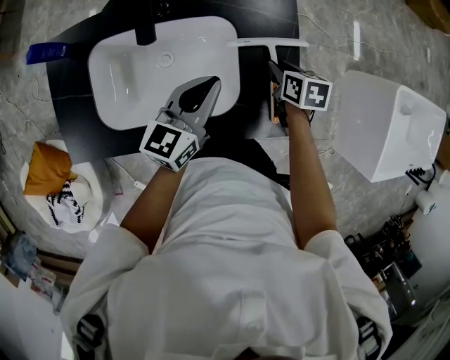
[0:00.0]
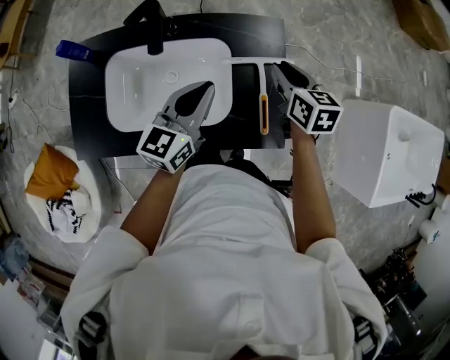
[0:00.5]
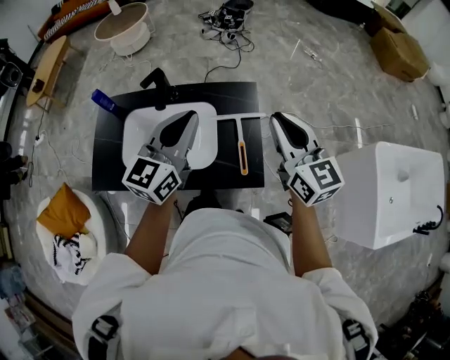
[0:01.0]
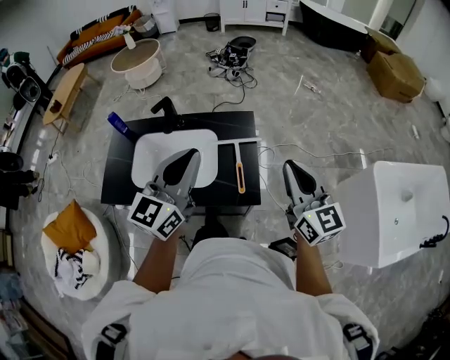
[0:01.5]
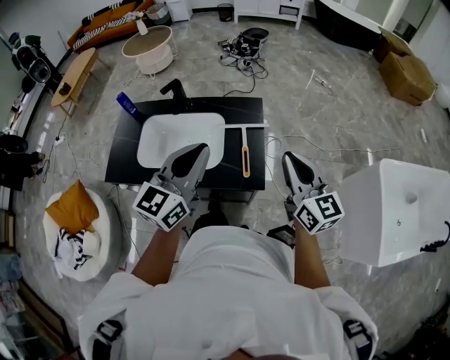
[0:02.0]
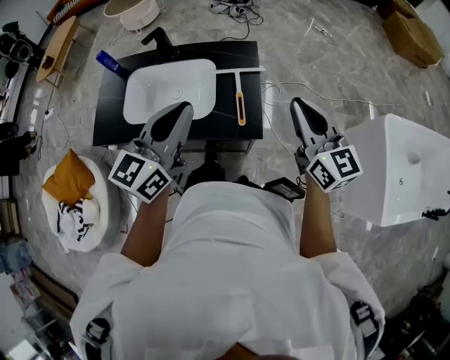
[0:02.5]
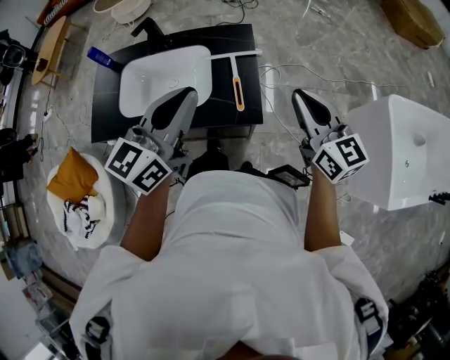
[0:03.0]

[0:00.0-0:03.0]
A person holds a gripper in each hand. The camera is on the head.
0:00.0 to 0:01.5: Both grippers travel together upward and backward, about 40 cm. The right gripper angles its fingers upward, by roughly 60 degrees; the left gripper rotates approximately 30 degrees.
0:01.5 to 0:03.0: The right gripper is displaced downward by about 5 cm. The left gripper moves approximately 5 cm.

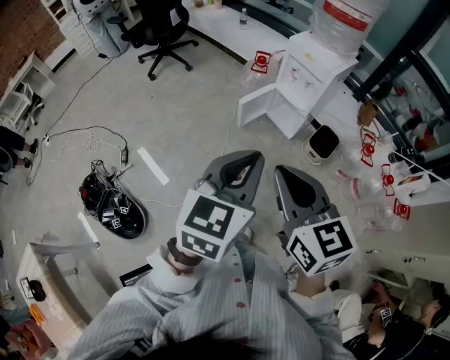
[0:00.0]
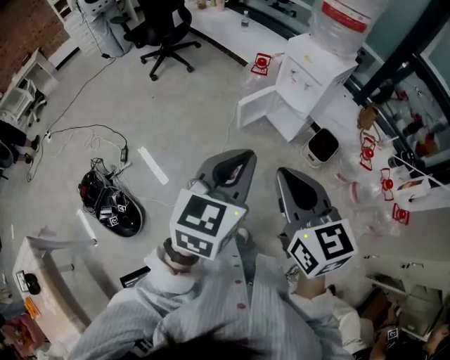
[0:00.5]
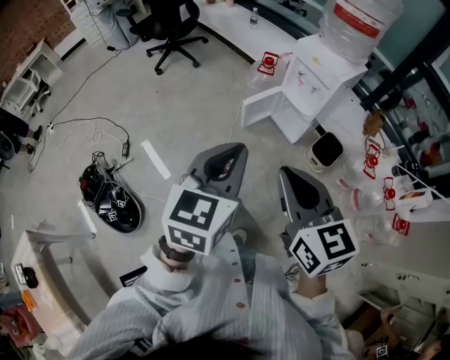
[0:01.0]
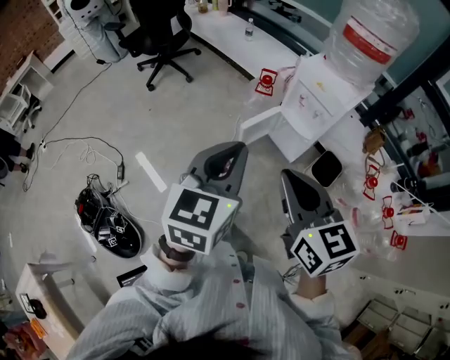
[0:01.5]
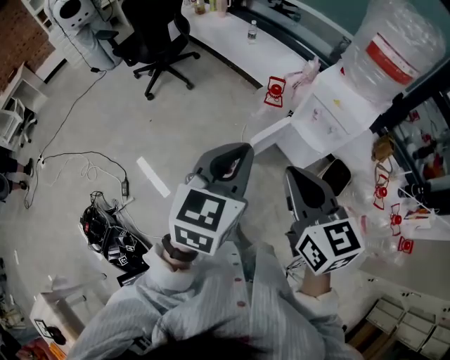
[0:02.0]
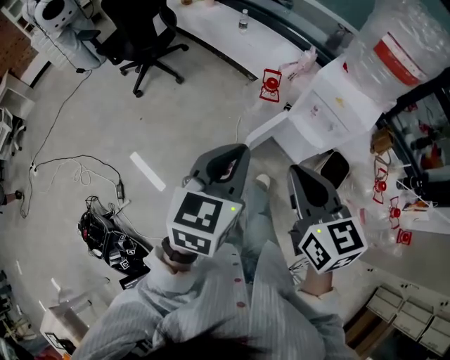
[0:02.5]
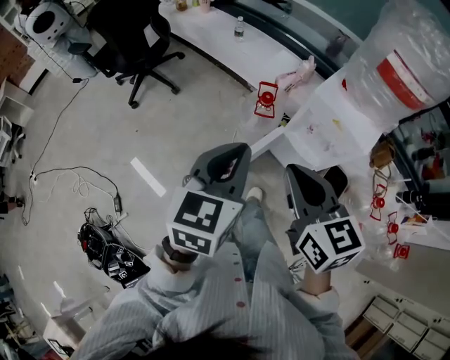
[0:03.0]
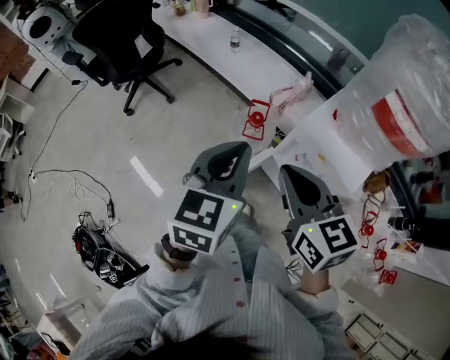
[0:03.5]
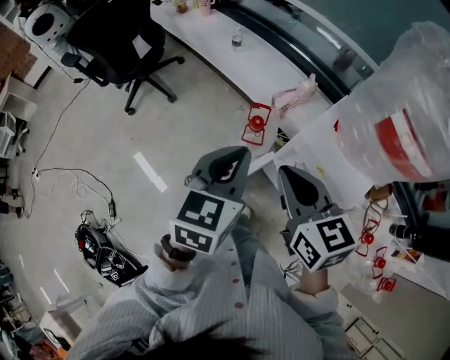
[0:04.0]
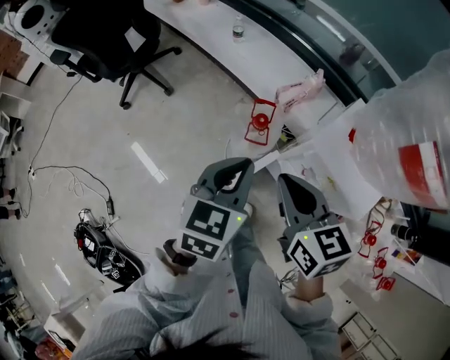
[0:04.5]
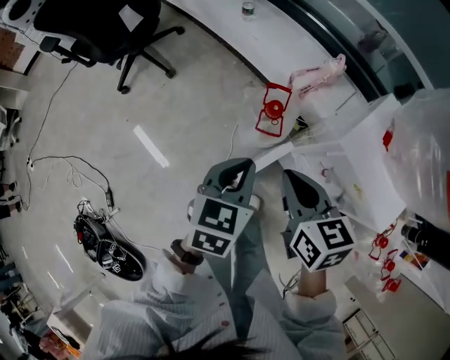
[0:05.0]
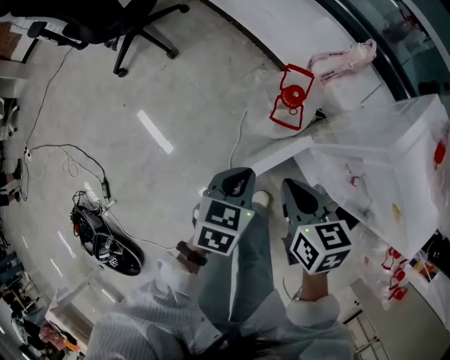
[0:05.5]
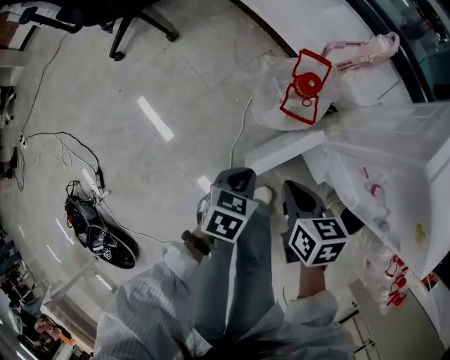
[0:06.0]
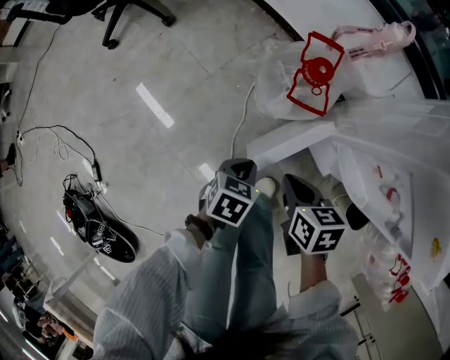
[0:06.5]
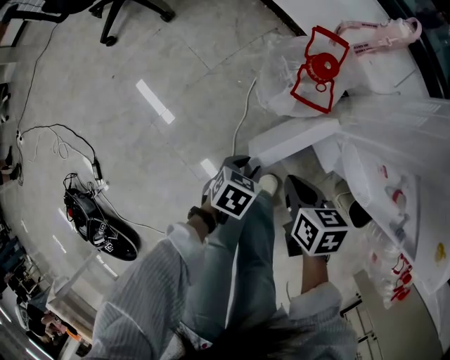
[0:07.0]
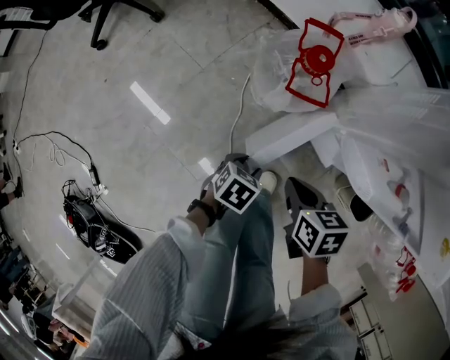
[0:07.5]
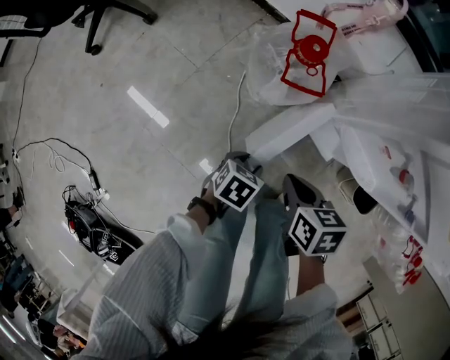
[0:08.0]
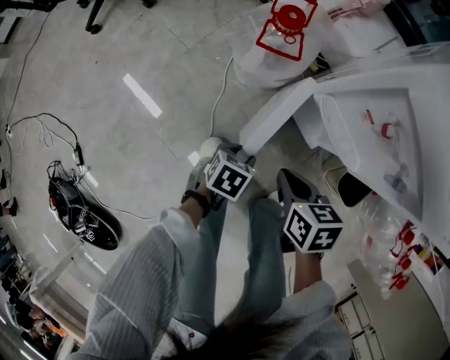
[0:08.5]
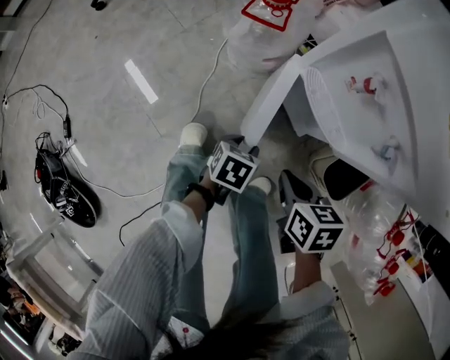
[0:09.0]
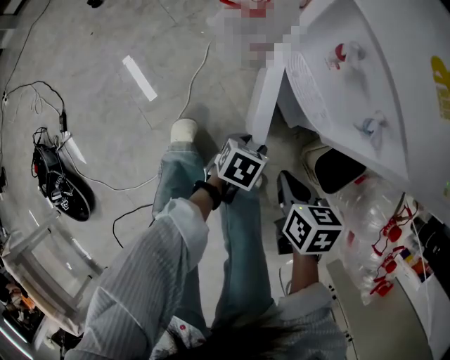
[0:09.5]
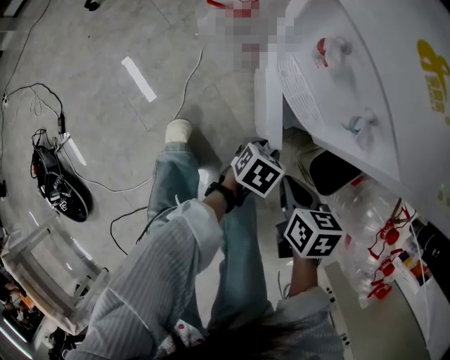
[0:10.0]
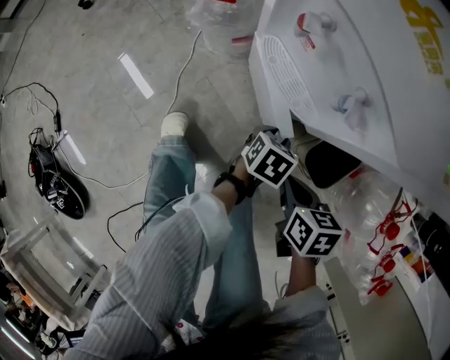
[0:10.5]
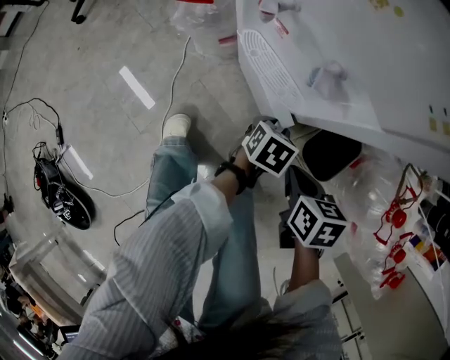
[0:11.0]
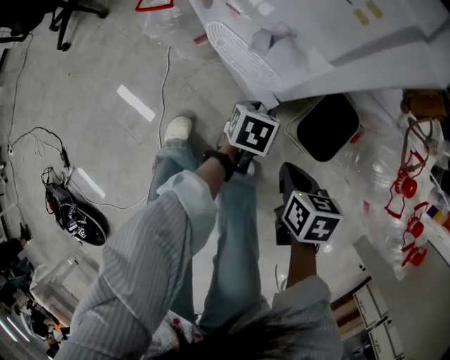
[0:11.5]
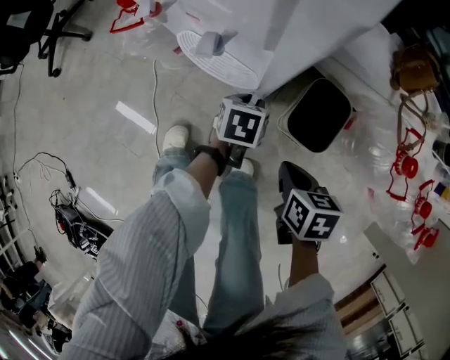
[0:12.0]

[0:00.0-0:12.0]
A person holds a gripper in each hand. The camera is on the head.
0:00.0 to 0:02.0: The two grippers go about 30 cm forward.
0:02.0 to 0:04.0: Both grippers travel together forward, approximately 30 cm.
0:04.0 to 0:06.0: Both grippers travel together downward, some 40 cm. The right gripper swivels approximately 30 degrees. Meanwhile the left gripper swivels approximately 30 degrees.
0:06.0 to 0:08.0: The right gripper shifts approximately 10 cm downward, while the left gripper is displaced downward by some 15 cm, rotates approximately 20 degrees, and opens up.
0:08.0 to 0:10.0: The right gripper is displaced to the right and backward by some 30 cm. The left gripper shifts roughly 30 cm to the right.
0:10.0 to 0:12.0: The right gripper travels to the right by approximately 10 cm, and changes its angle by roughly 20 degrees, while the left gripper heads to the right and forward, covering about 10 cm.

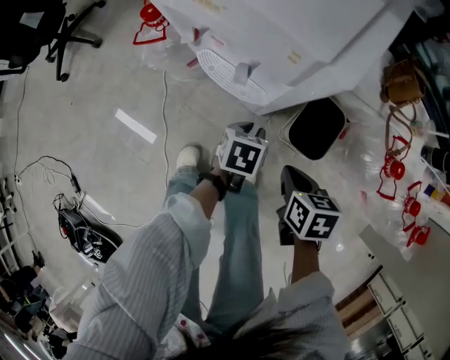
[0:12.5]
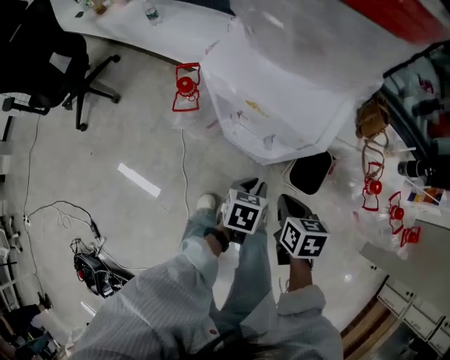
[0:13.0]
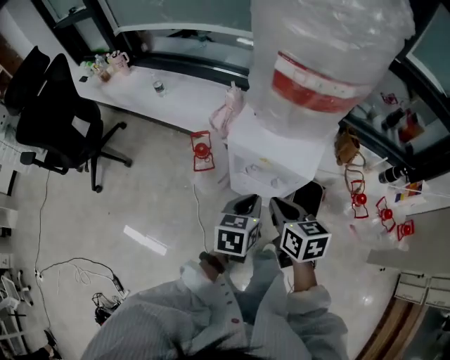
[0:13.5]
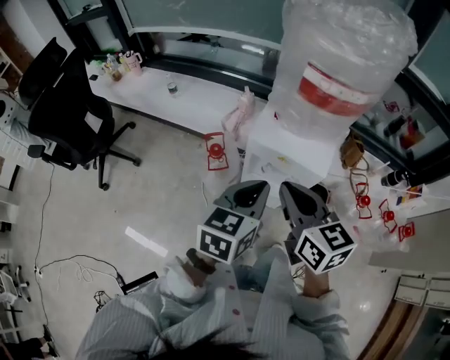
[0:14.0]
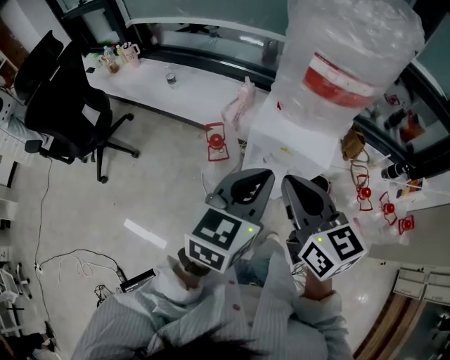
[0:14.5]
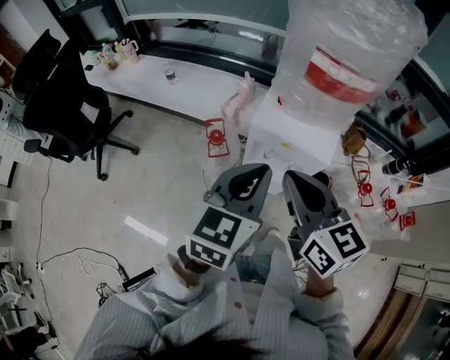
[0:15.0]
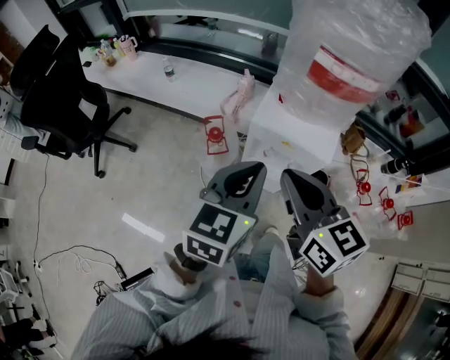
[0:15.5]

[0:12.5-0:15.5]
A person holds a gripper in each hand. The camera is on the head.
0:12.5 to 0:14.0: The left gripper is displaced upward by approximately 50 cm, tilts its fingers approximately 40 degrees upward, and closes up; the right gripper heads upward and to the left, covering approximately 60 cm, and tilts its fingers approximately 40 degrees upward.
0:14.0 to 0:15.5: The left gripper changes place by about 5 cm.

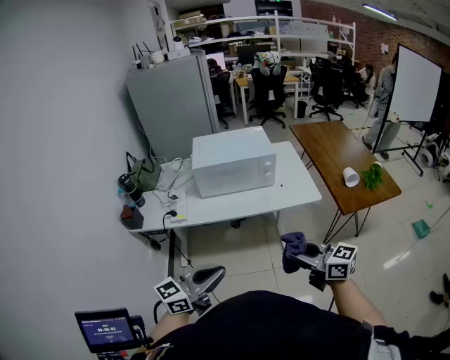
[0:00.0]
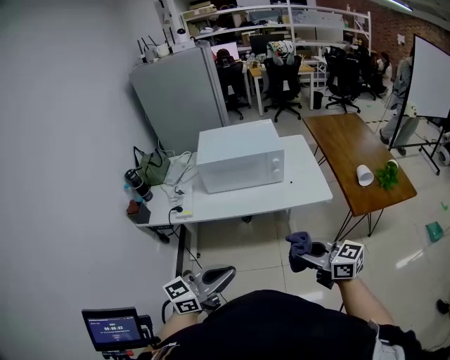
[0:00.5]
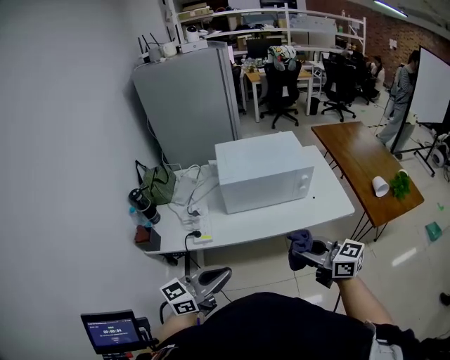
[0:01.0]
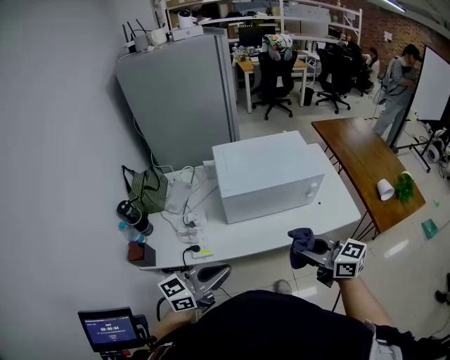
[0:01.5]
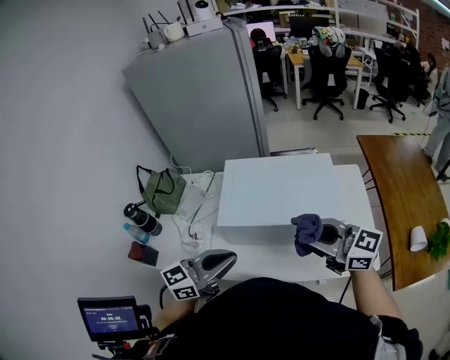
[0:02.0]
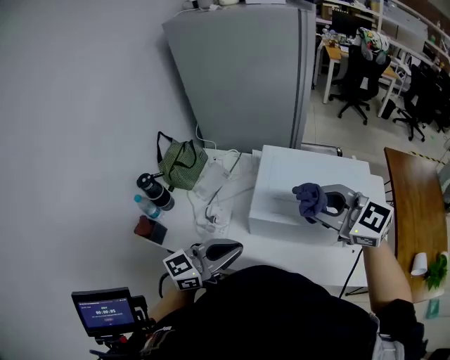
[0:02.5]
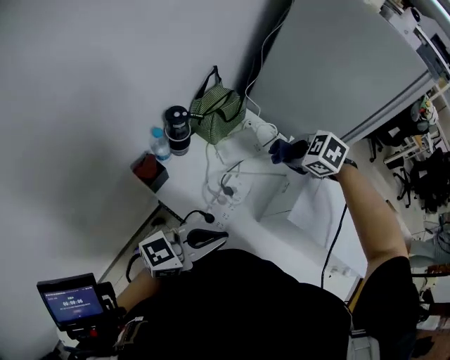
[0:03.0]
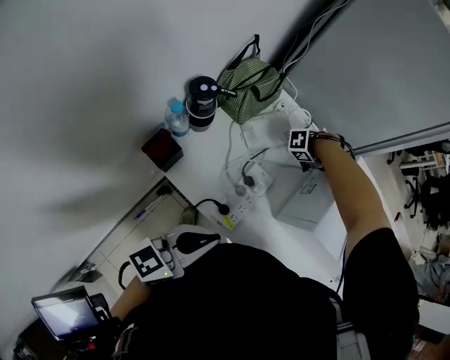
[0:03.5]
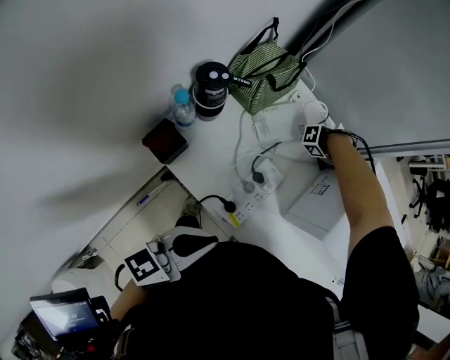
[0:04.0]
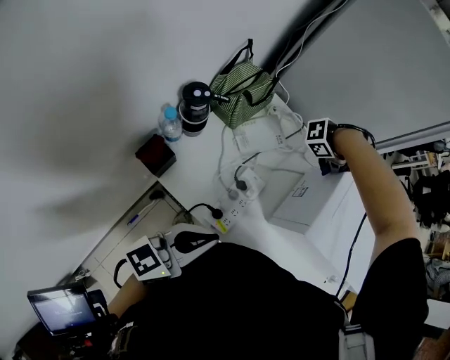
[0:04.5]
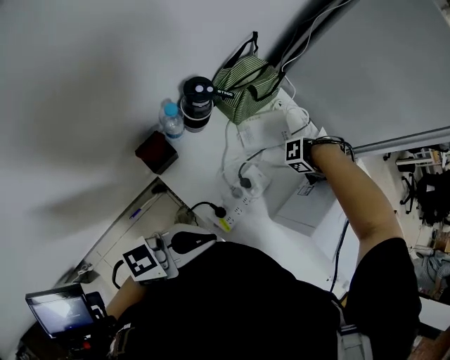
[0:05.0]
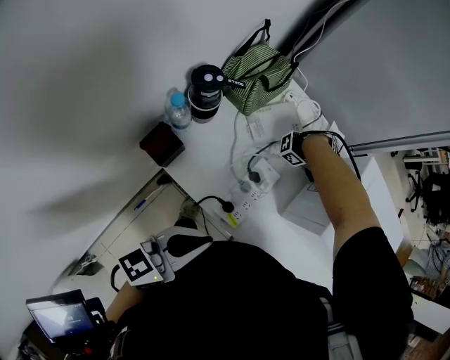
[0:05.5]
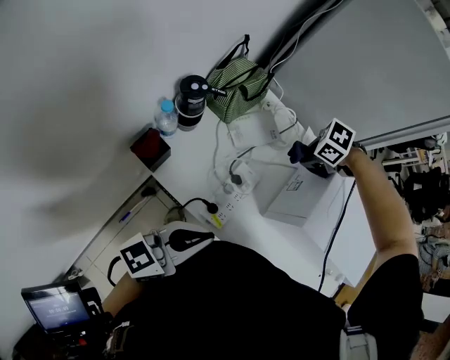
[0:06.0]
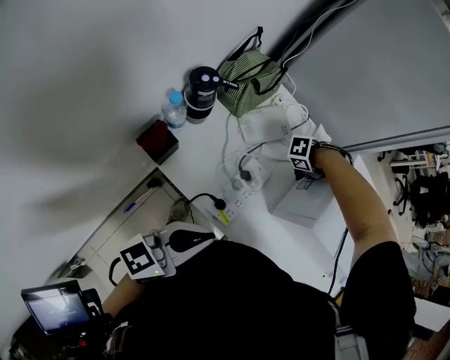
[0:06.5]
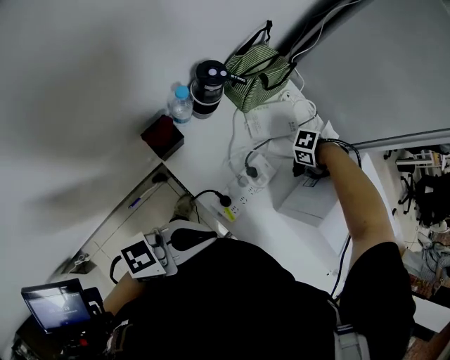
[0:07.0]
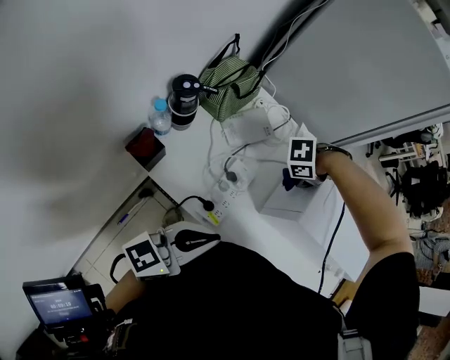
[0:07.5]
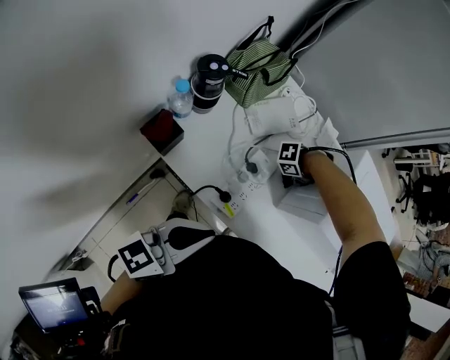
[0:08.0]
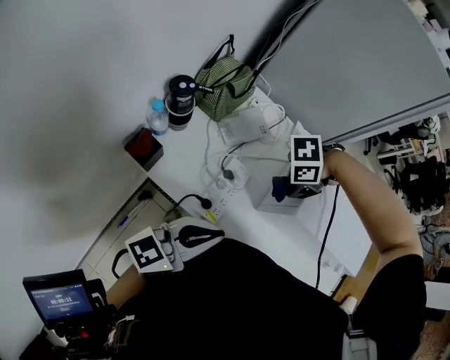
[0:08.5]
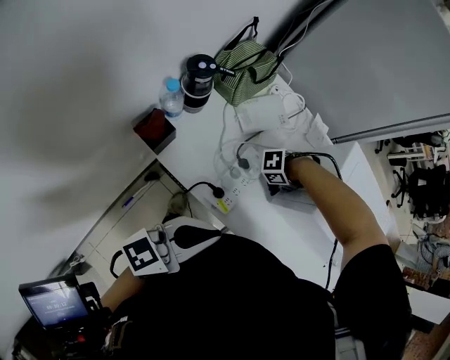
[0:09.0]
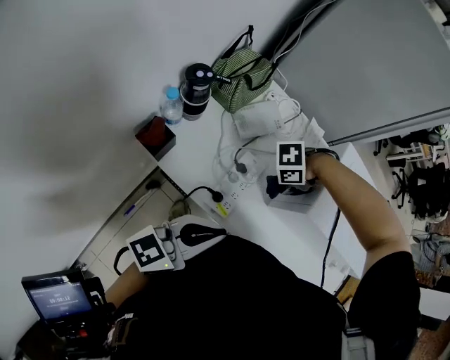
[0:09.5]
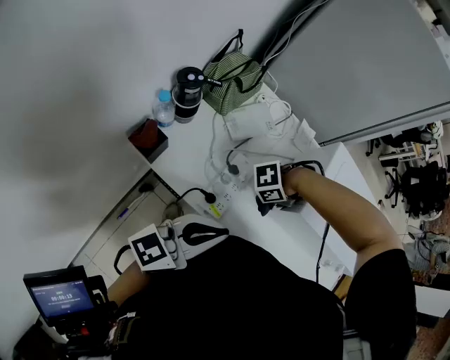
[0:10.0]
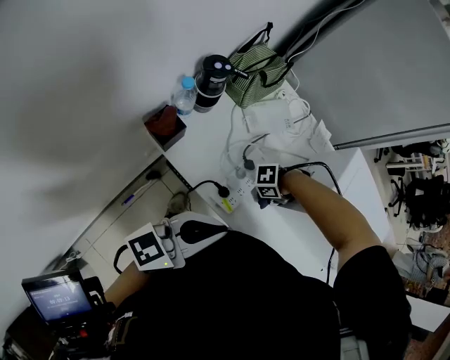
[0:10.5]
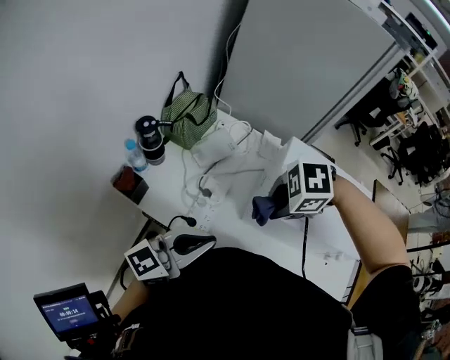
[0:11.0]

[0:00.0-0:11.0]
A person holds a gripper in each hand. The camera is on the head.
0:00.0 to 0:02.0: The left gripper moves approximately 40 cm.
0:02.0 to 0:03.5: The left gripper moves approximately 30 cm, and rotates roughly 30 degrees.
0:05.5 to 0:07.5: The left gripper moves approximately 5 cm.
0:09.0 to 0:11.0: The left gripper moves about 10 cm.
